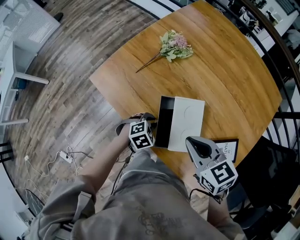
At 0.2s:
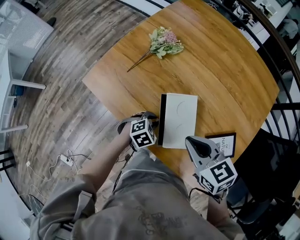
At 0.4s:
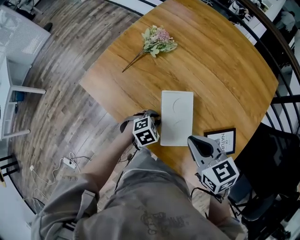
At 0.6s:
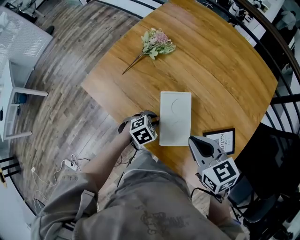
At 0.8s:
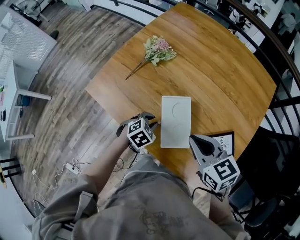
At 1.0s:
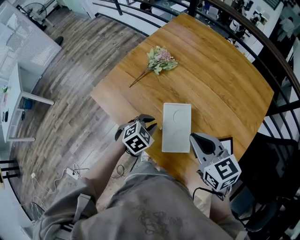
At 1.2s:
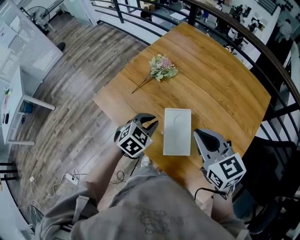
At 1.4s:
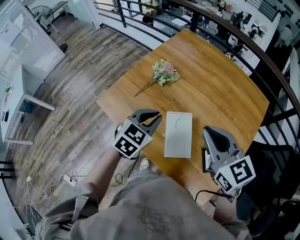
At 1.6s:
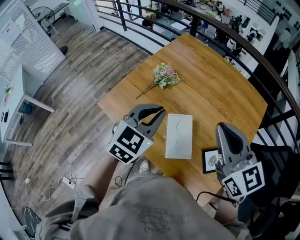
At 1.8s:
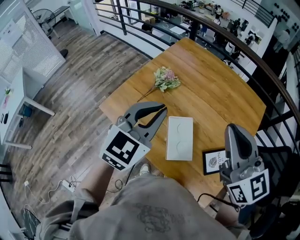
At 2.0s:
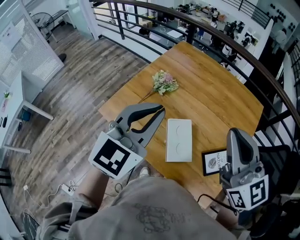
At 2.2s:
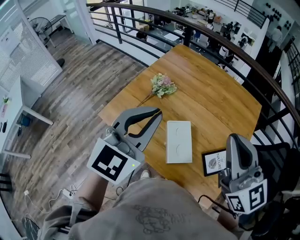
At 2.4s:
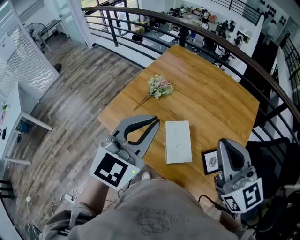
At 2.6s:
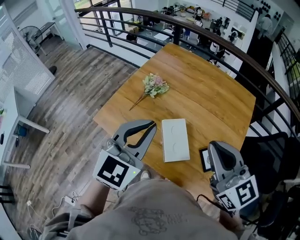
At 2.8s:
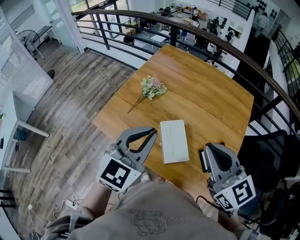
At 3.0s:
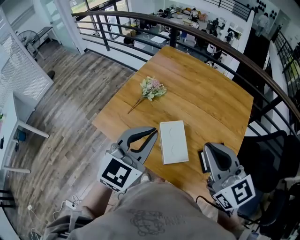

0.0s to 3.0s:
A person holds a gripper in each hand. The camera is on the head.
0.0s to 1.6s: The left gripper goes roughly 35 cm upward, and angles its fingers upward, by about 40 degrees. Meanwhile the right gripper travels upward by about 20 cm, and rotates about 40 degrees.
1.6s to 3.0s: The right gripper moves backward, roughly 5 cm. Meanwhile the left gripper goes approximately 10 cm backward and upward.

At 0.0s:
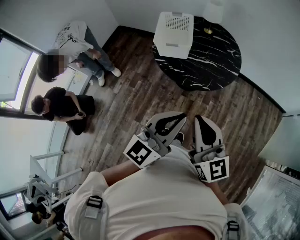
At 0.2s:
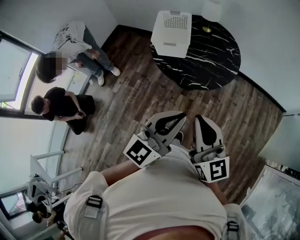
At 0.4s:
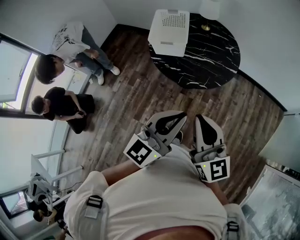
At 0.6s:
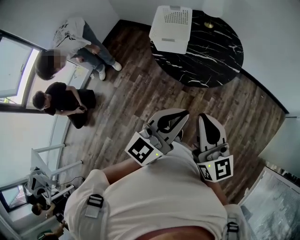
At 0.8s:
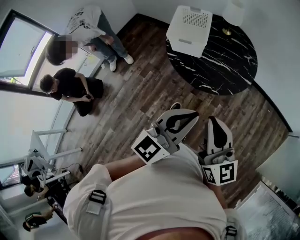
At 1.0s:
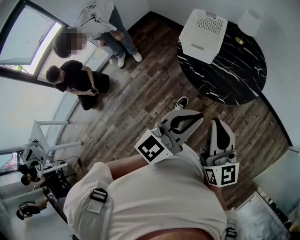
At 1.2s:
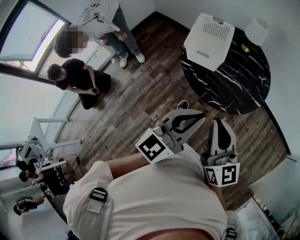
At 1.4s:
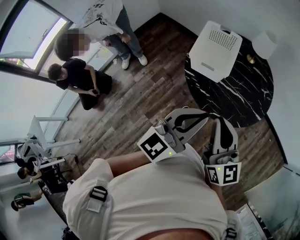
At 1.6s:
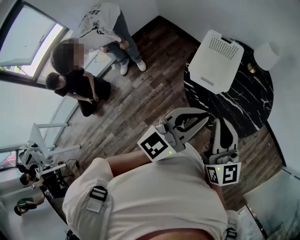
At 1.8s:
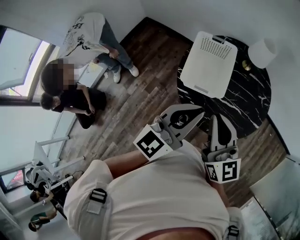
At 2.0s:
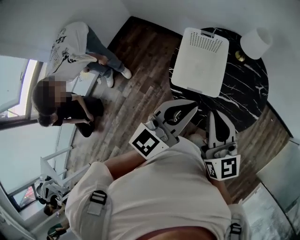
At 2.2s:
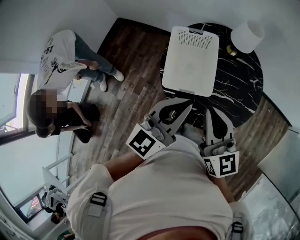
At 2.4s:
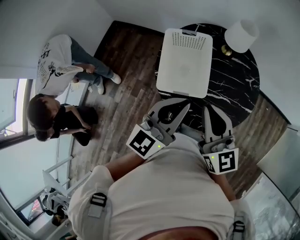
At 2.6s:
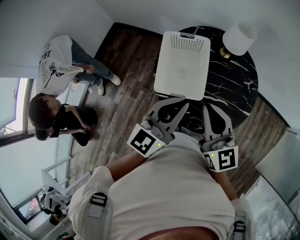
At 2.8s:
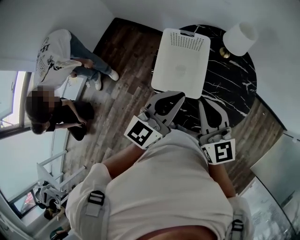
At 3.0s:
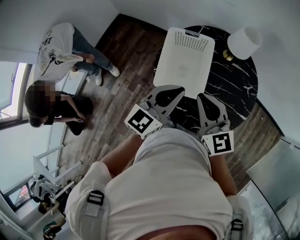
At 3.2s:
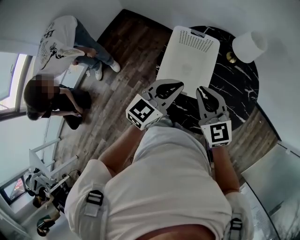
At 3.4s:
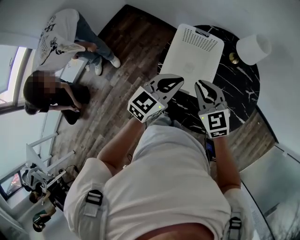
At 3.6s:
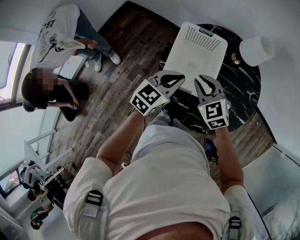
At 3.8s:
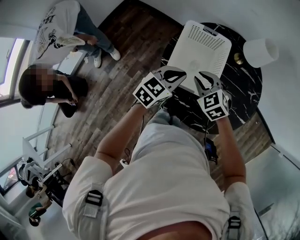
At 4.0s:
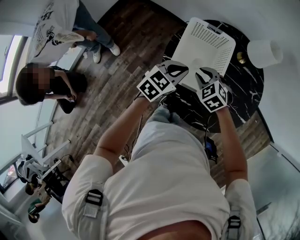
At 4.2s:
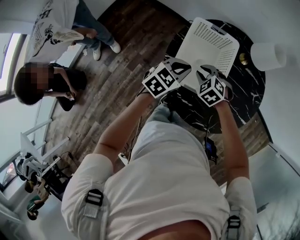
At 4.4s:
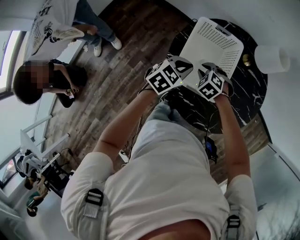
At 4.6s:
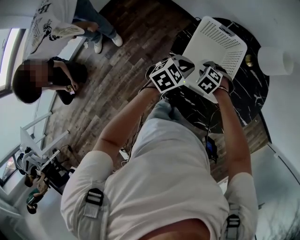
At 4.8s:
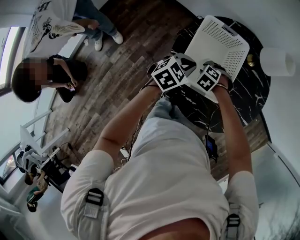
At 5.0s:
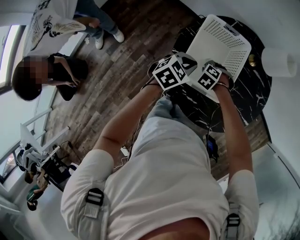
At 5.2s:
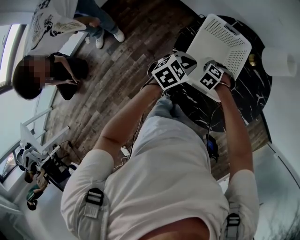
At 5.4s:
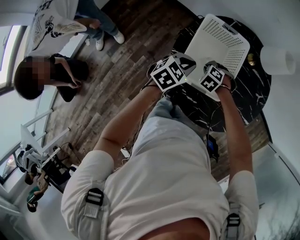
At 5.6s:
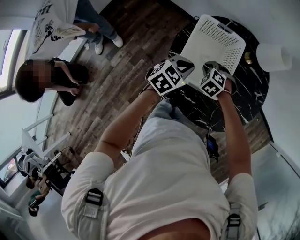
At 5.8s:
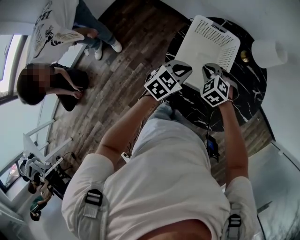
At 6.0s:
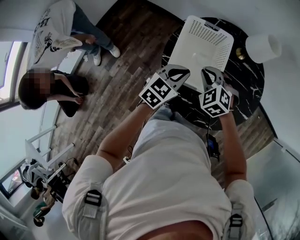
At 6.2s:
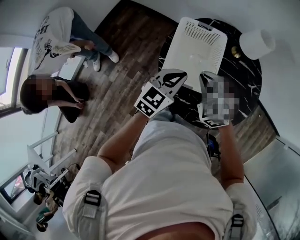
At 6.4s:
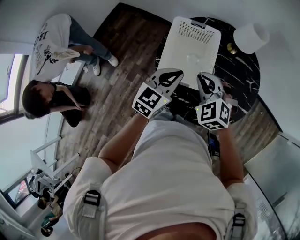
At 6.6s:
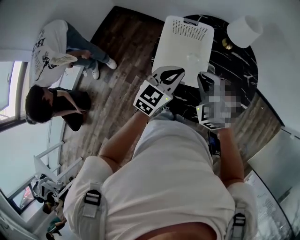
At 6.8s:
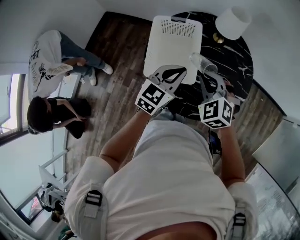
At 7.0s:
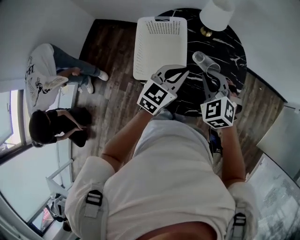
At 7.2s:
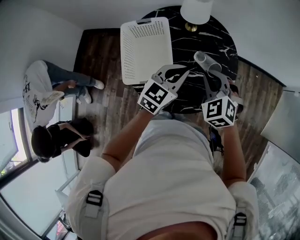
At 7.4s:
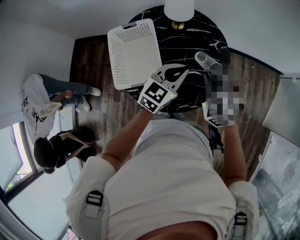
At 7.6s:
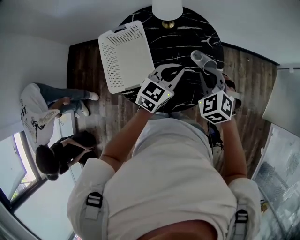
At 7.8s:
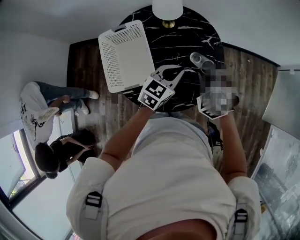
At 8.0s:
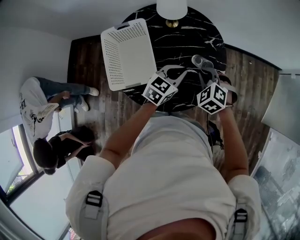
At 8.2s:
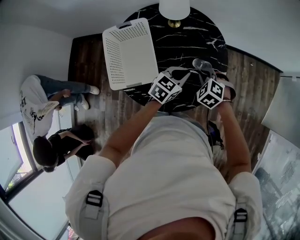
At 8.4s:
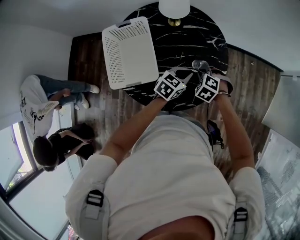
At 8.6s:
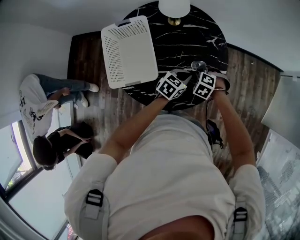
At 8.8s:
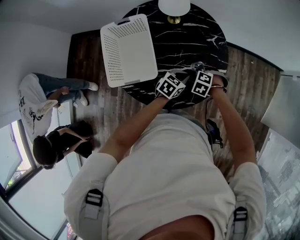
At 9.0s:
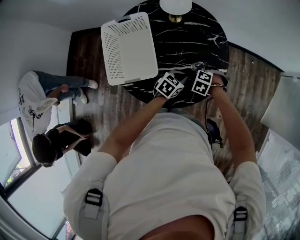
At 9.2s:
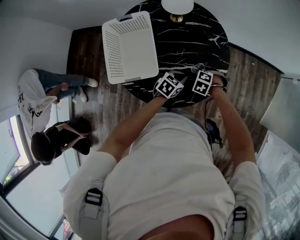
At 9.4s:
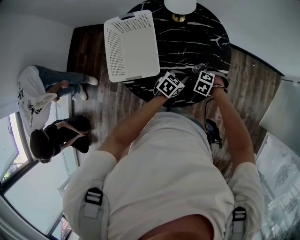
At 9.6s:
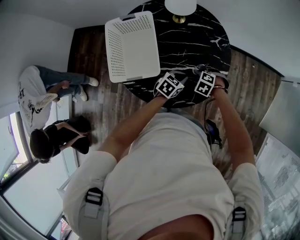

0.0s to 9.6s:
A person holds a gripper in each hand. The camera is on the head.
0.0s to 1.6s: Both grippers travel together forward, roughly 30 cm.
1.6s to 3.2s: Both grippers travel together forward and downward, roughly 25 cm. The right gripper swivels roughly 30 degrees.
3.2s to 4.8s: The left gripper is displaced downward by some 15 cm, and turns by approximately 30 degrees, while the right gripper moves downward, approximately 30 cm, points its fingers about 60 degrees further downward, and opens up.
4.8s to 6.4s: The left gripper travels upward by some 10 cm, and rotates approximately 20 degrees. The right gripper is displaced upward by about 25 cm, and tips its fingers upward by roughly 40 degrees.
6.4s to 8.0s: The right gripper changes place by about 30 cm, and rotates approximately 30 degrees; the left gripper ends up approximately 30 cm from where it was, and changes its angle by about 30 degrees.
8.0s to 9.6s: Both grippers move downward, some 15 cm. The right gripper rotates some 30 degrees.

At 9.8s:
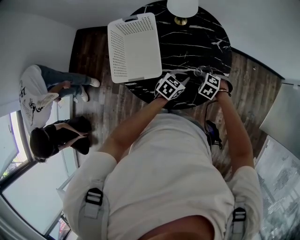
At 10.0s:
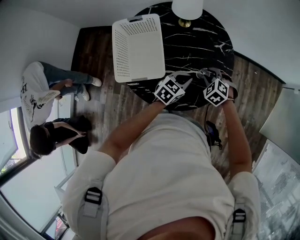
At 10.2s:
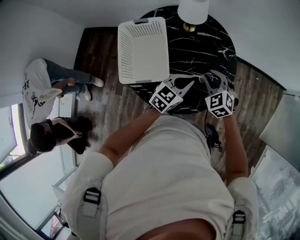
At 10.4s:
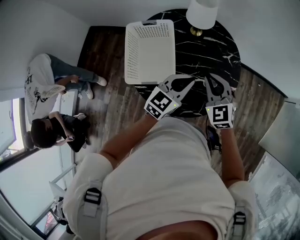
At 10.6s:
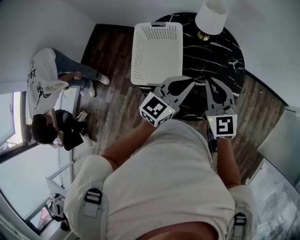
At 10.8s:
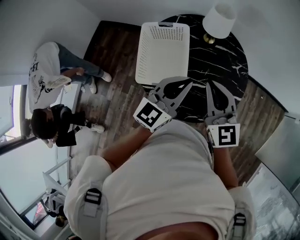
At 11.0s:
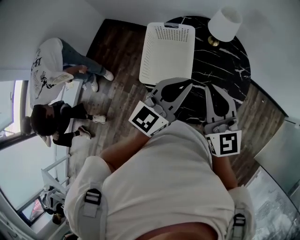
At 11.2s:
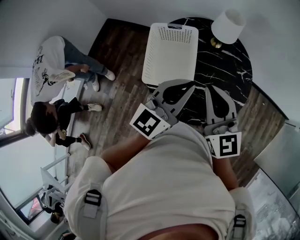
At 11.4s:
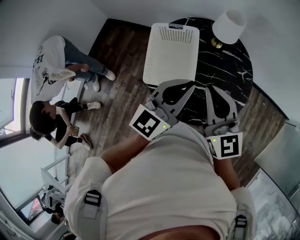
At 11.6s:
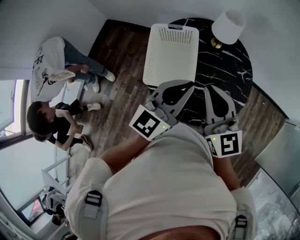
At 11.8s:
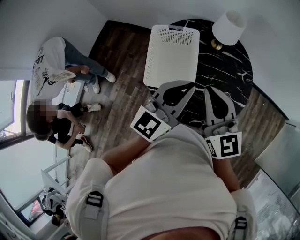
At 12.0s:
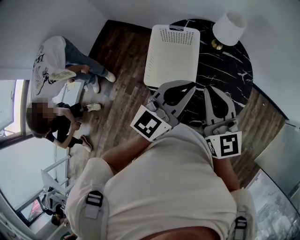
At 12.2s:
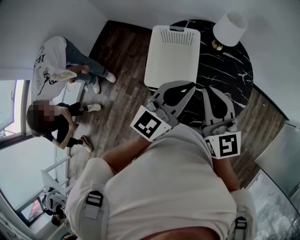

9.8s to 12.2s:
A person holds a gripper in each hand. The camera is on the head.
9.8s to 11.0s: Both grippers travel together upward and to the left, about 40 cm. The left gripper tilts its fingers some 40 degrees upward. Meanwhile the right gripper points its fingers some 70 degrees further upward, and closes.
11.0s to 12.2s: There are only small adjustments of the grippers.

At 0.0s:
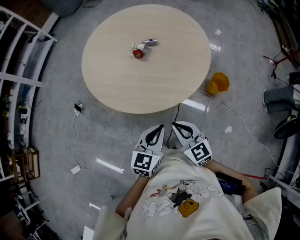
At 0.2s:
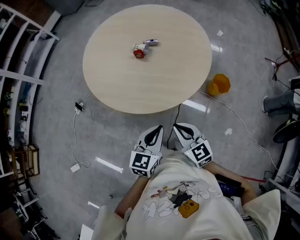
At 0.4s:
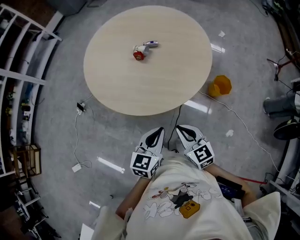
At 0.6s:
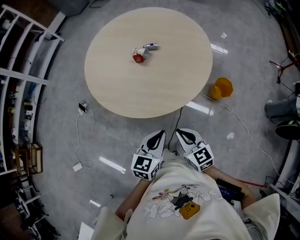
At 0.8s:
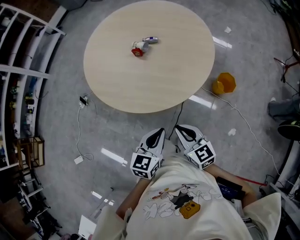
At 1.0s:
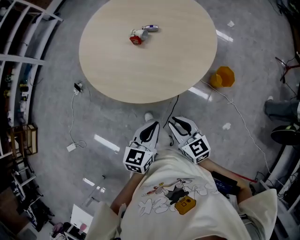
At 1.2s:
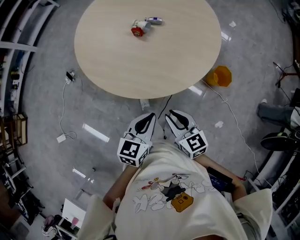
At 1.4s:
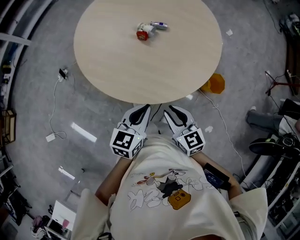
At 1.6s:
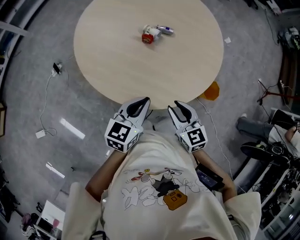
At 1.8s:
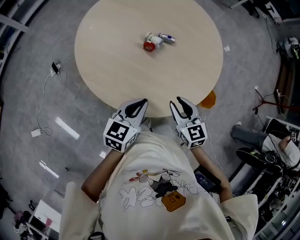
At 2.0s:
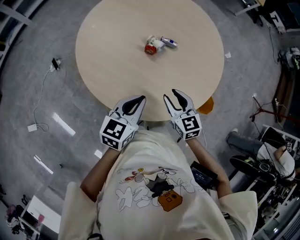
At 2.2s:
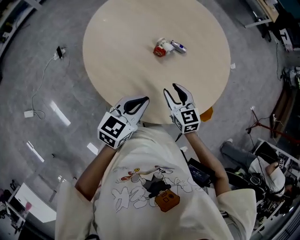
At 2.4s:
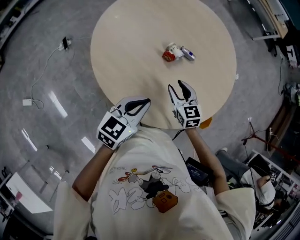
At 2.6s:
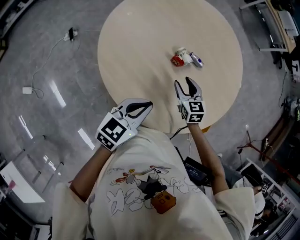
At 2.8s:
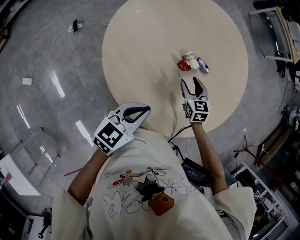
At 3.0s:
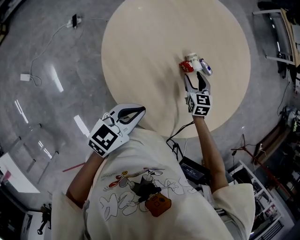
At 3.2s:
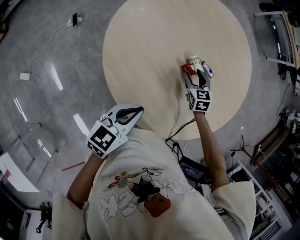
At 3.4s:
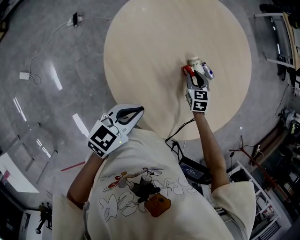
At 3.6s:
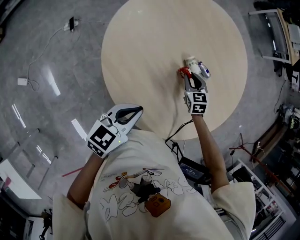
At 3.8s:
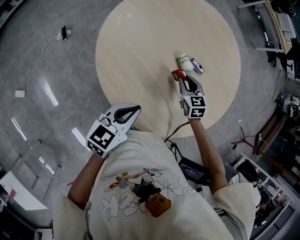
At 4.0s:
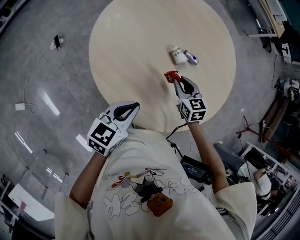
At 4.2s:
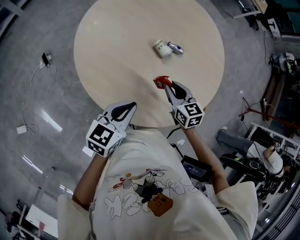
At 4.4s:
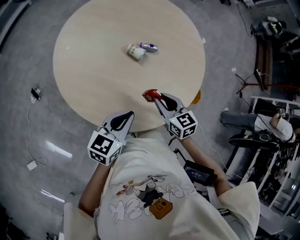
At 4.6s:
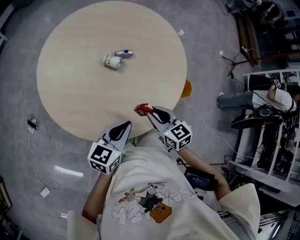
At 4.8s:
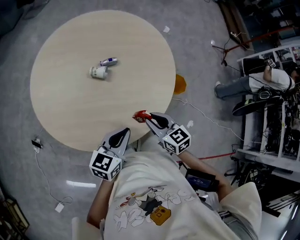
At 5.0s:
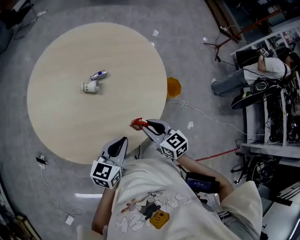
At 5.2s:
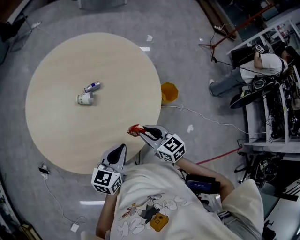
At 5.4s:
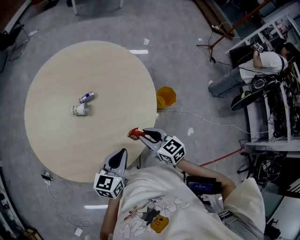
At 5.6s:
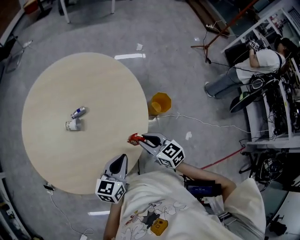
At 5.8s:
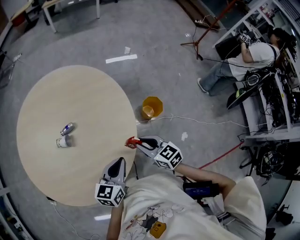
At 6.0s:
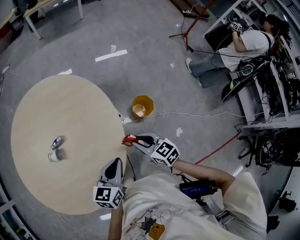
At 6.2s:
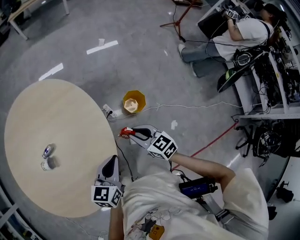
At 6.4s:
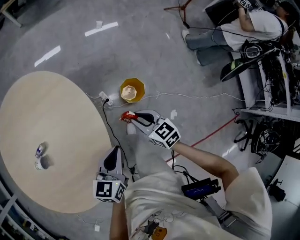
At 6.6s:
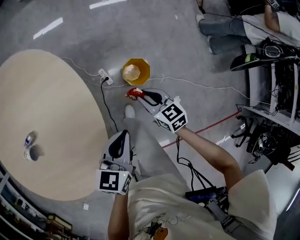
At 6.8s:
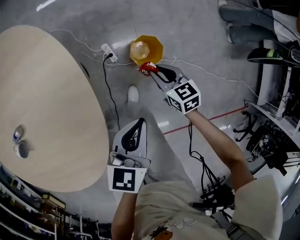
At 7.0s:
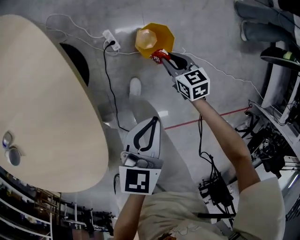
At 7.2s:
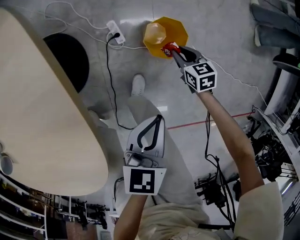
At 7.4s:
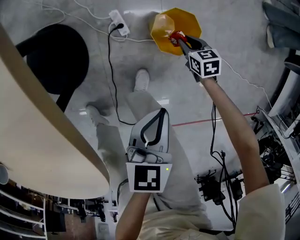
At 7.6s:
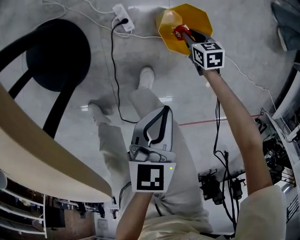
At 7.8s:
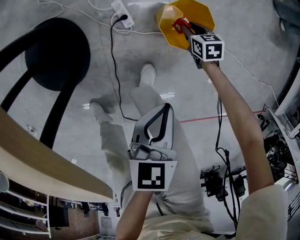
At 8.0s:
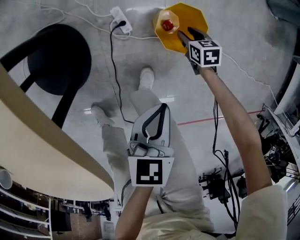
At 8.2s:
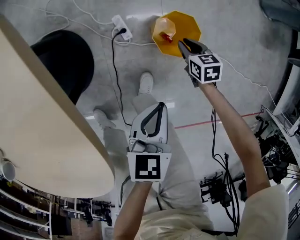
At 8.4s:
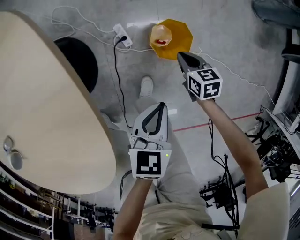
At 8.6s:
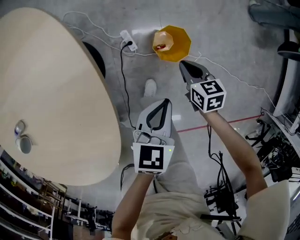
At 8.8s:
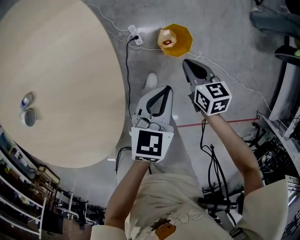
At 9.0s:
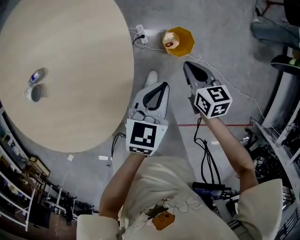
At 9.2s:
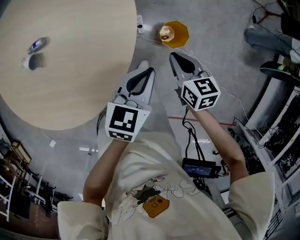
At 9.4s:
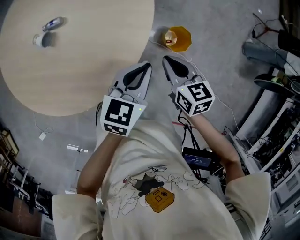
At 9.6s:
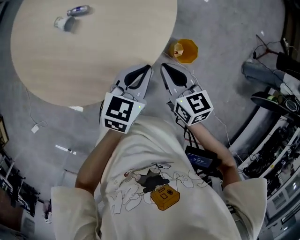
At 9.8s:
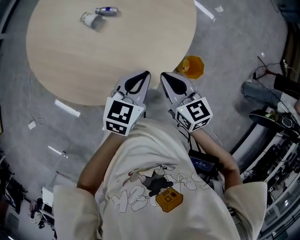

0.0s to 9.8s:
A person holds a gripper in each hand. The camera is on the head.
0.0s to 1.4s: The two grippers go some 10 cm forward. The right gripper opens up.
1.4s to 2.8s: The left gripper shifts roughly 15 cm forward and to the left, while the right gripper travels forward by about 35 cm, swivels roughly 20 degrees, and opens its fingers.
2.8s to 4.2s: The right gripper goes some 10 cm backward and upward, and closes.
4.2s to 5.6s: The right gripper changes place by approximately 25 cm, and changes its angle by about 30 degrees; the left gripper changes place by about 25 cm, and changes its angle by about 30 degrees.
5.6s to 7.0s: The right gripper travels downward, to the right and forward by approximately 60 cm, and changes its angle by some 20 degrees. Meanwhile the left gripper heads to the right, downward and forward, covering approximately 50 cm.
7.0s to 8.4s: The right gripper travels downward and back again, approximately 30 cm each way, and opens, then closes again. The left gripper shifts some 10 cm downward.
8.4s to 9.8s: The right gripper goes about 50 cm upward, and swivels about 50 degrees, while the left gripper shifts some 30 cm upward, and rotates some 30 degrees.
